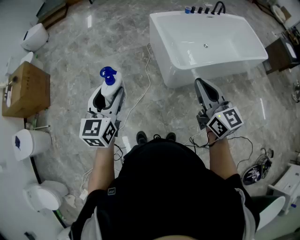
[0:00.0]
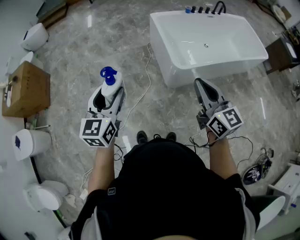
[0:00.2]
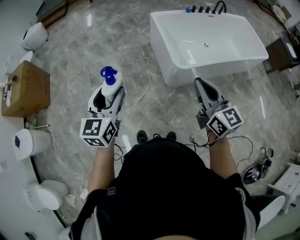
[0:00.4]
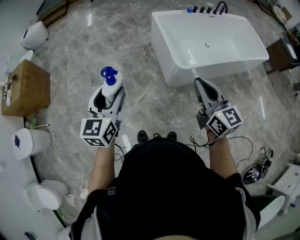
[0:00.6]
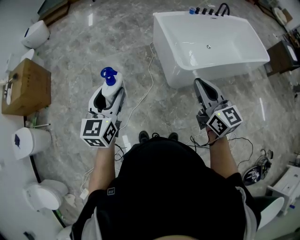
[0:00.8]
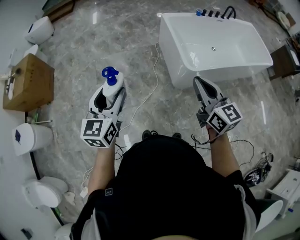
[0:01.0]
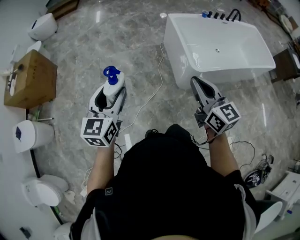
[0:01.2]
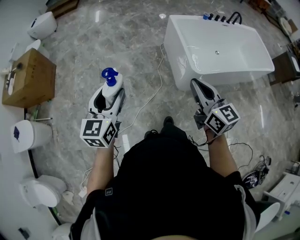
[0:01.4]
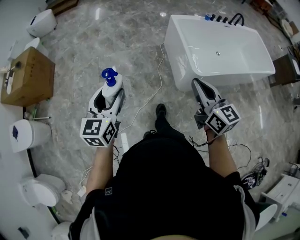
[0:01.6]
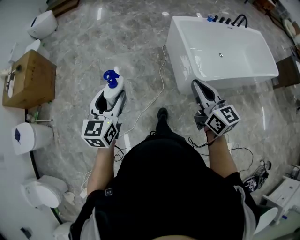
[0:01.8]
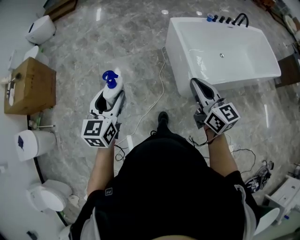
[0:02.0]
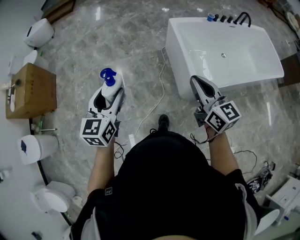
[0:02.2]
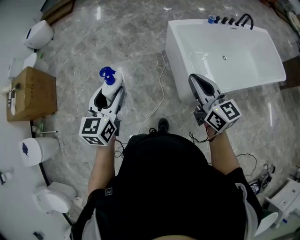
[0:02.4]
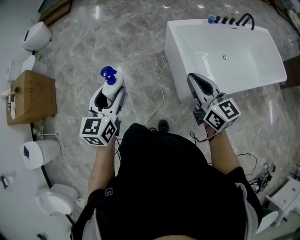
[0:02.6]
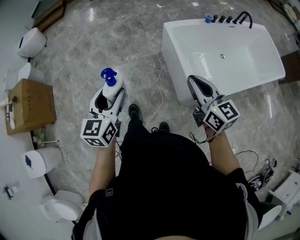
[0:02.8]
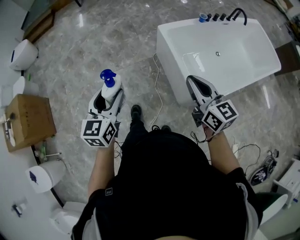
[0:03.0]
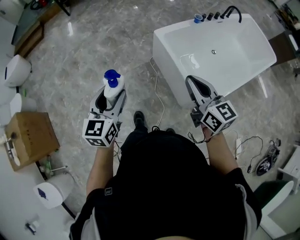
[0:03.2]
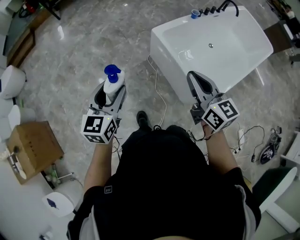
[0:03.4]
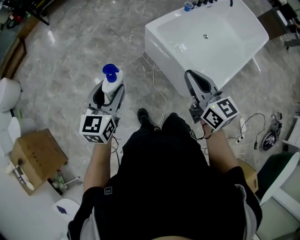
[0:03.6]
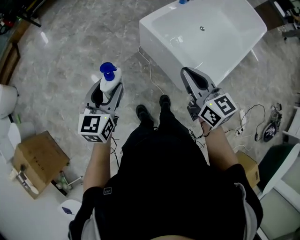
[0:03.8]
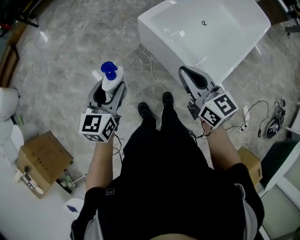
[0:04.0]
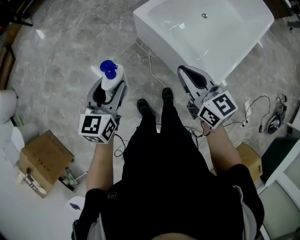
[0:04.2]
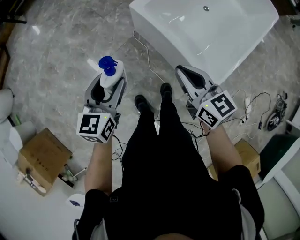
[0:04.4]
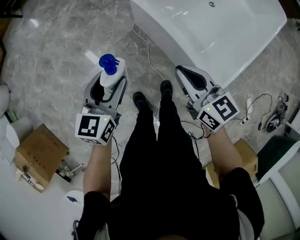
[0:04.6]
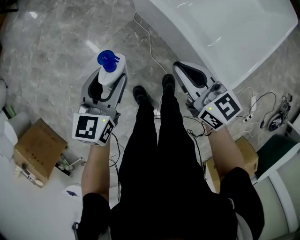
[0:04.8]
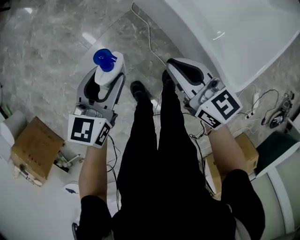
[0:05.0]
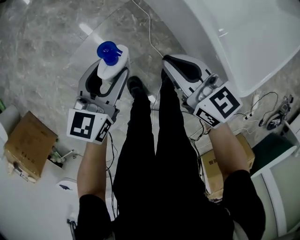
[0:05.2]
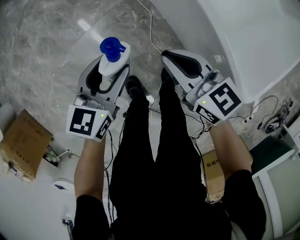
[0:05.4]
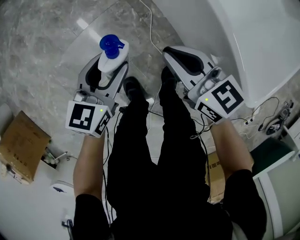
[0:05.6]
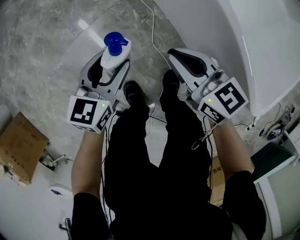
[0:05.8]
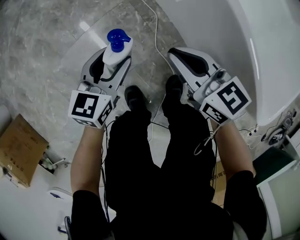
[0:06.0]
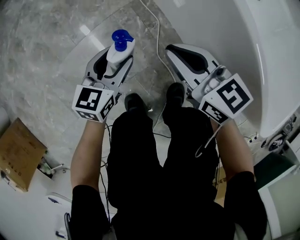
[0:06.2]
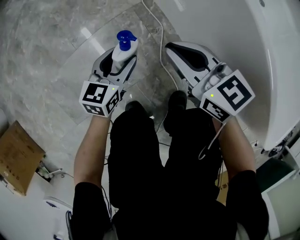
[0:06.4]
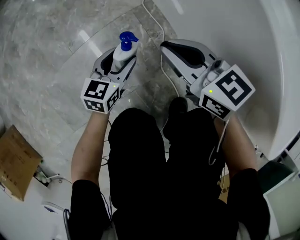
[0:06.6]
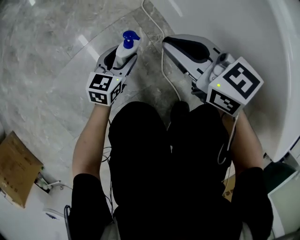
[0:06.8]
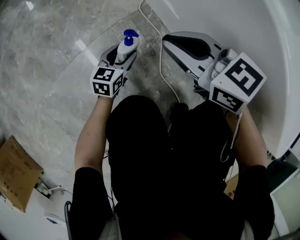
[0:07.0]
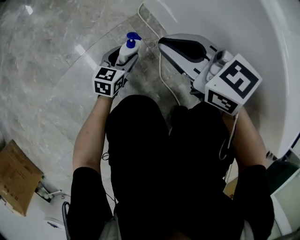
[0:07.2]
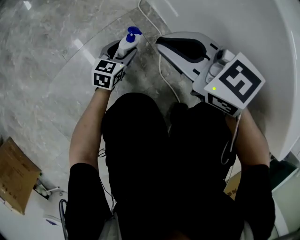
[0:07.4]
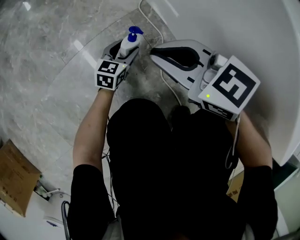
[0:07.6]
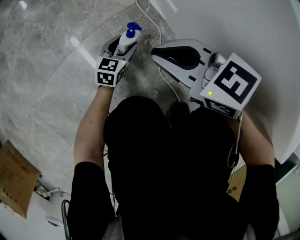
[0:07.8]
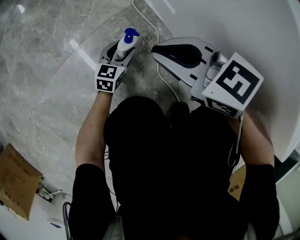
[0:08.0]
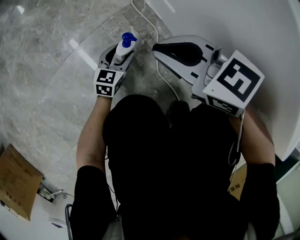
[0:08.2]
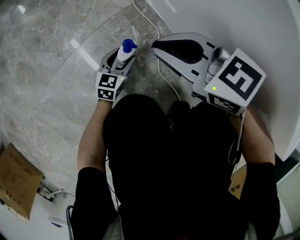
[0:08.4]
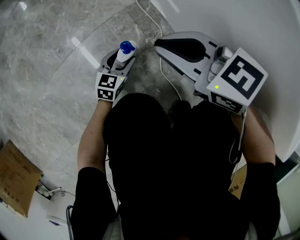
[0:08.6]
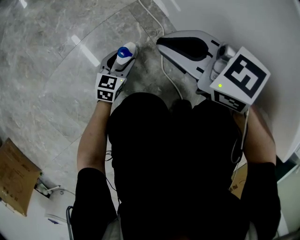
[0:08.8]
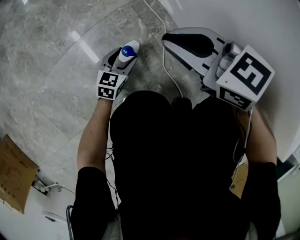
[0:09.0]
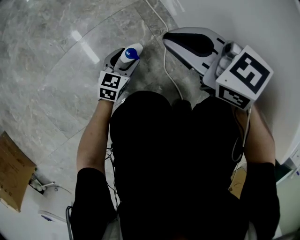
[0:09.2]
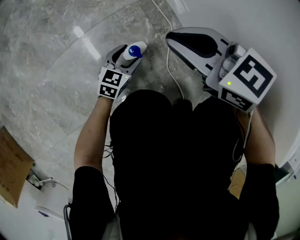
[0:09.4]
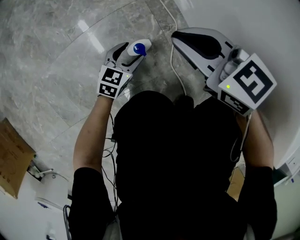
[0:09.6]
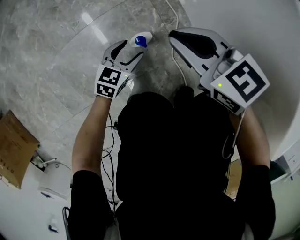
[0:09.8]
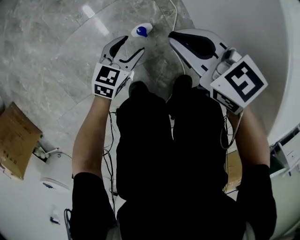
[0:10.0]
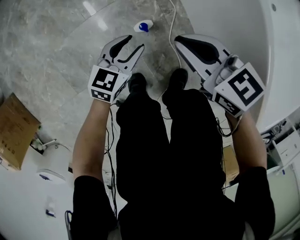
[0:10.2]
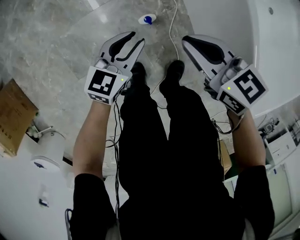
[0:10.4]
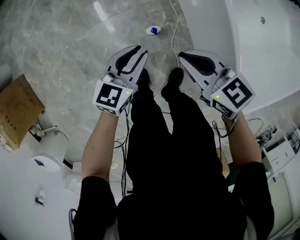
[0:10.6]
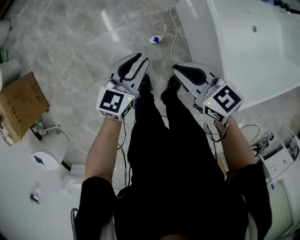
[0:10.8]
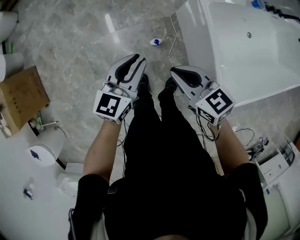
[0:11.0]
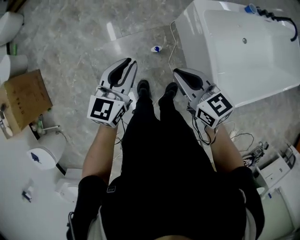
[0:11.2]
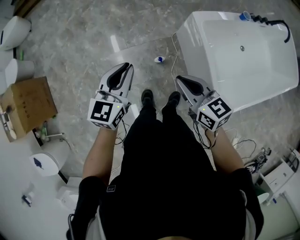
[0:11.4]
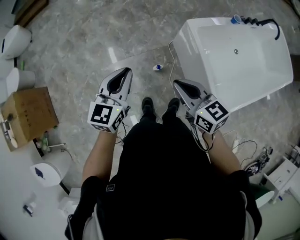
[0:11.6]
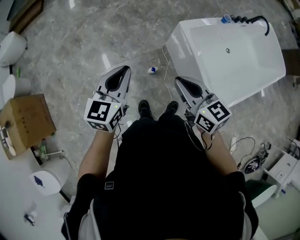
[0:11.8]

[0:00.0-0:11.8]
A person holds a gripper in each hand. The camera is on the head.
0.0 to 1.4 s: The two grippers go roughly 15 cm to the left.
1.4 to 3.0 s: Both grippers travel together forward, roughly 40 cm.
3.0 to 4.4 s: Both grippers travel together forward and downward, roughly 25 cm. The left gripper swivels approximately 30 degrees.
4.4 to 6.0 s: Both grippers move downward, roughly 50 cm.
6.0 to 7.4 s: The right gripper shifts some 15 cm downward and forward, while the left gripper is displaced downward by about 30 cm.
7.4 to 8.8 s: The left gripper heads backward, covering about 5 cm.
8.8 to 10.4 s: The right gripper shifts approximately 20 cm upward, while the left gripper goes roughly 40 cm upward, and closes its fingers.
10.4 to 11.8 s: The two grippers go about 50 cm upward. The left gripper rotates about 20 degrees, and closes up; the right gripper swivels approximately 20 degrees.

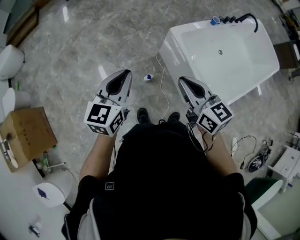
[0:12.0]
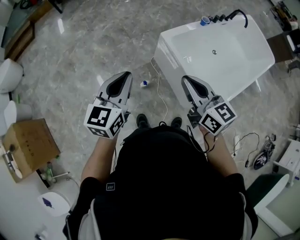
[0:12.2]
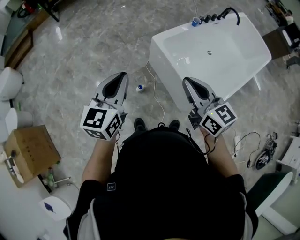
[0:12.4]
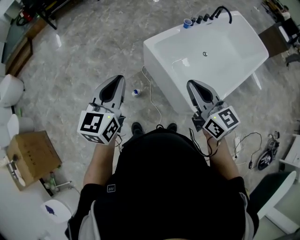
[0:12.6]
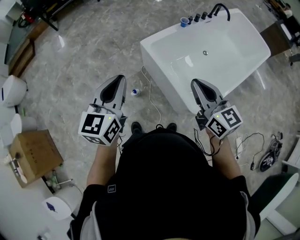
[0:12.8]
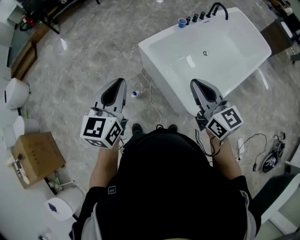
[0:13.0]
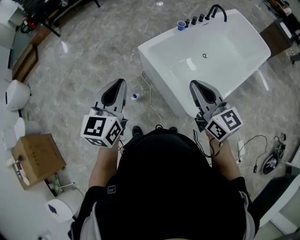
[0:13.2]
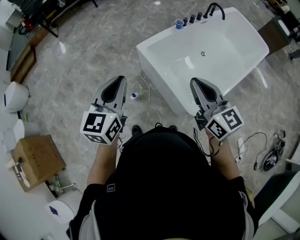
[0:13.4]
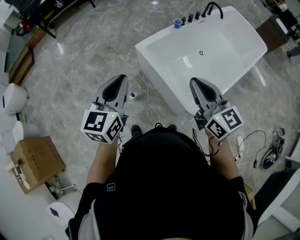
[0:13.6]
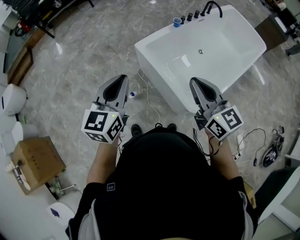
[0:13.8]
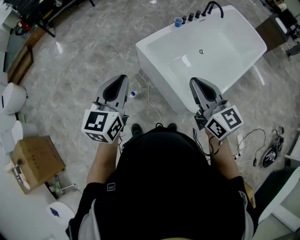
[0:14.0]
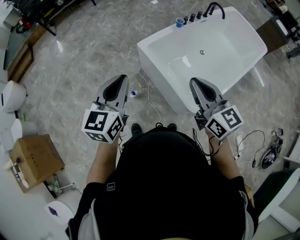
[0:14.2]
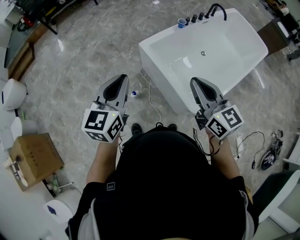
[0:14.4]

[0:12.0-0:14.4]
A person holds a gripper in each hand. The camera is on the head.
12.0 to 13.2 s: Both grippers travel together to the right, some 25 cm.
13.2 to 14.4 s: The grippers move only a little.

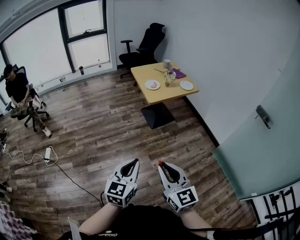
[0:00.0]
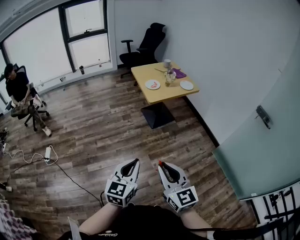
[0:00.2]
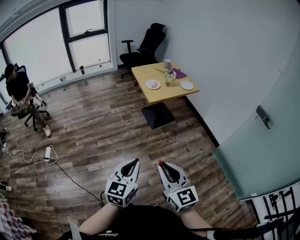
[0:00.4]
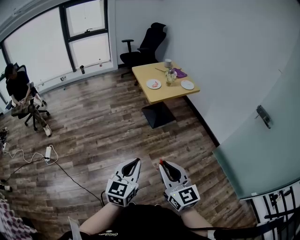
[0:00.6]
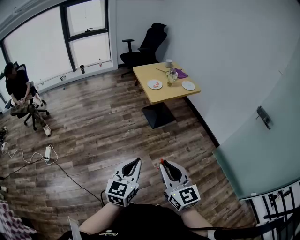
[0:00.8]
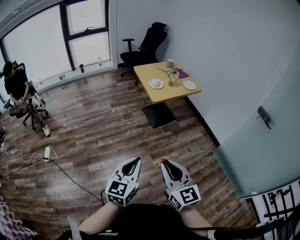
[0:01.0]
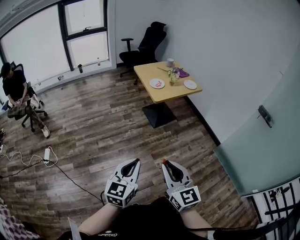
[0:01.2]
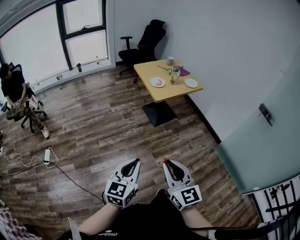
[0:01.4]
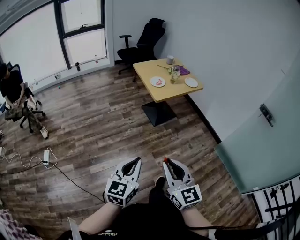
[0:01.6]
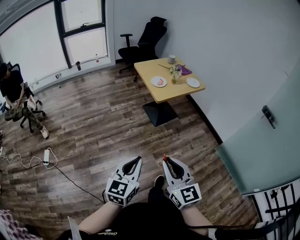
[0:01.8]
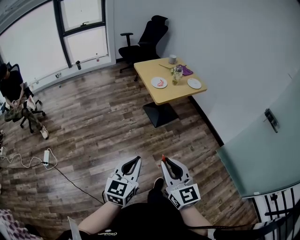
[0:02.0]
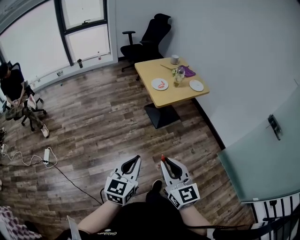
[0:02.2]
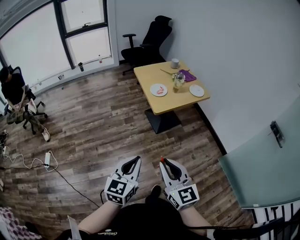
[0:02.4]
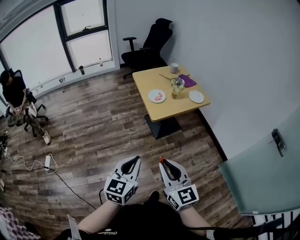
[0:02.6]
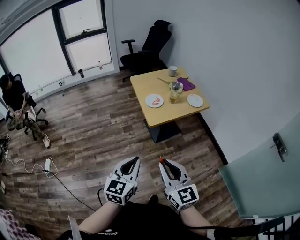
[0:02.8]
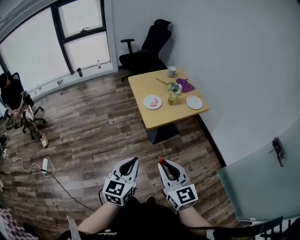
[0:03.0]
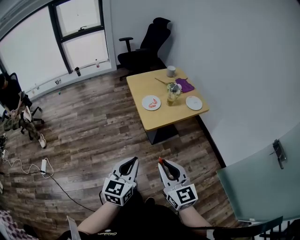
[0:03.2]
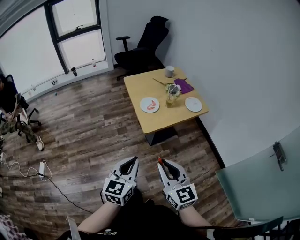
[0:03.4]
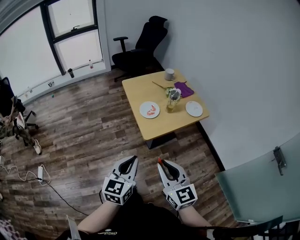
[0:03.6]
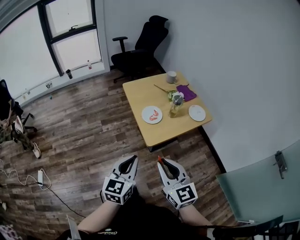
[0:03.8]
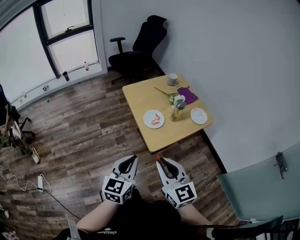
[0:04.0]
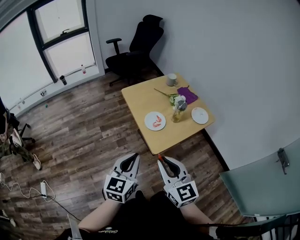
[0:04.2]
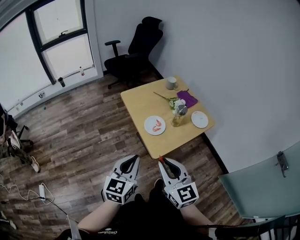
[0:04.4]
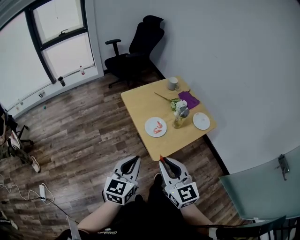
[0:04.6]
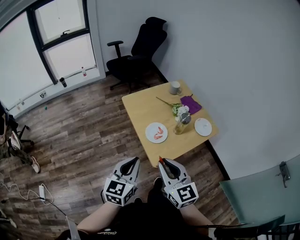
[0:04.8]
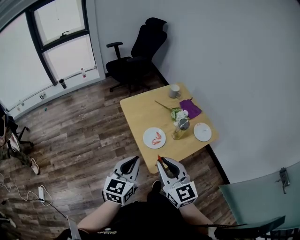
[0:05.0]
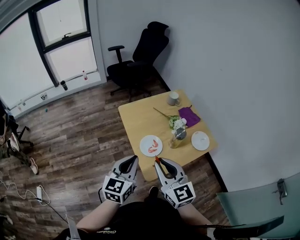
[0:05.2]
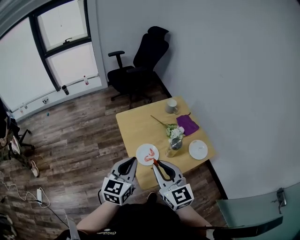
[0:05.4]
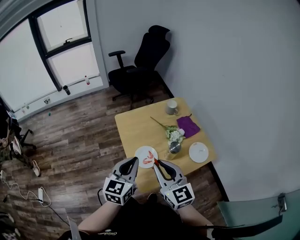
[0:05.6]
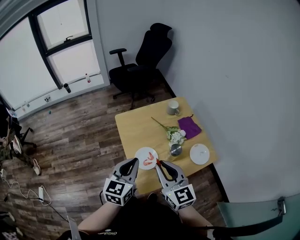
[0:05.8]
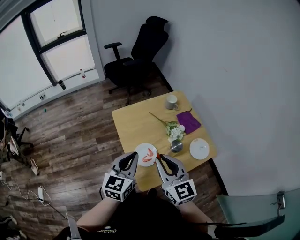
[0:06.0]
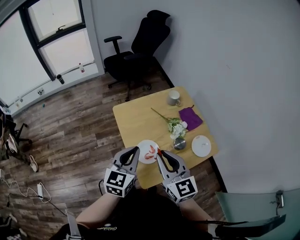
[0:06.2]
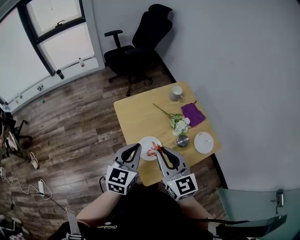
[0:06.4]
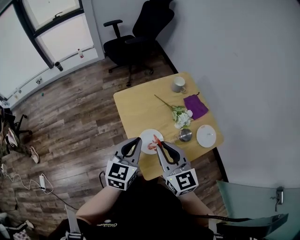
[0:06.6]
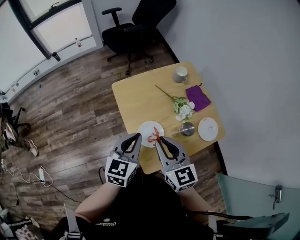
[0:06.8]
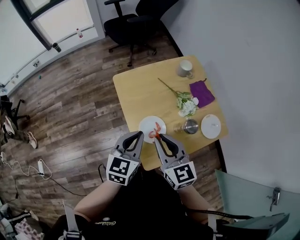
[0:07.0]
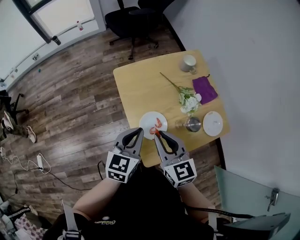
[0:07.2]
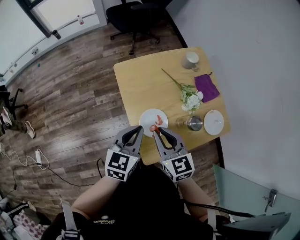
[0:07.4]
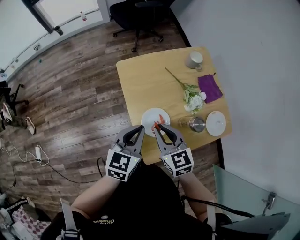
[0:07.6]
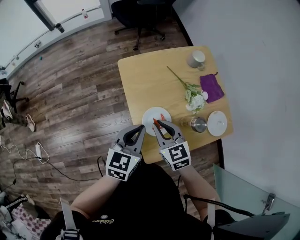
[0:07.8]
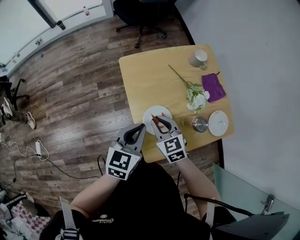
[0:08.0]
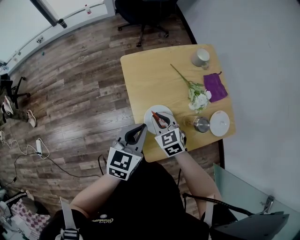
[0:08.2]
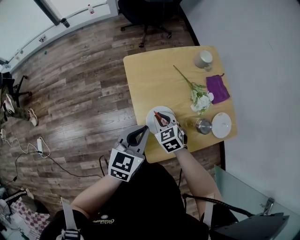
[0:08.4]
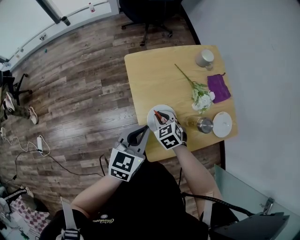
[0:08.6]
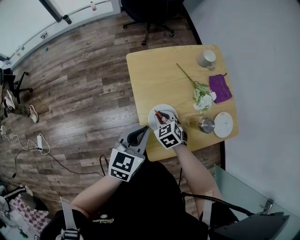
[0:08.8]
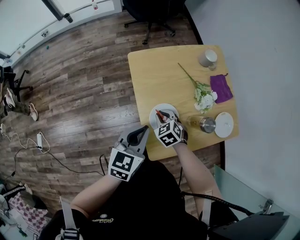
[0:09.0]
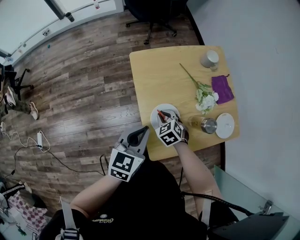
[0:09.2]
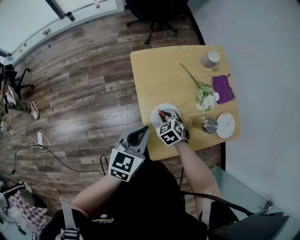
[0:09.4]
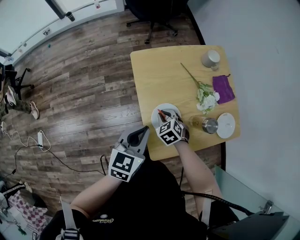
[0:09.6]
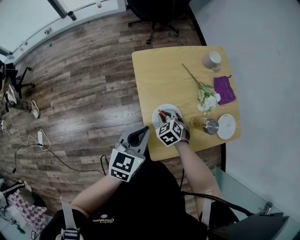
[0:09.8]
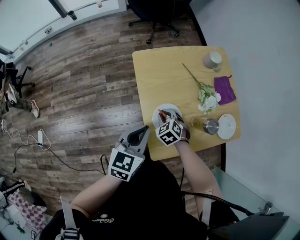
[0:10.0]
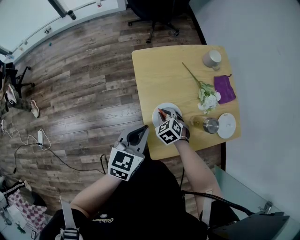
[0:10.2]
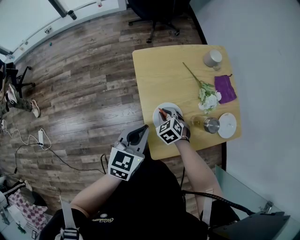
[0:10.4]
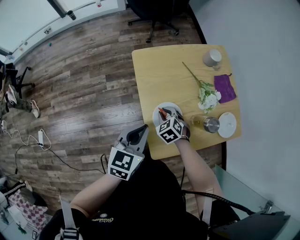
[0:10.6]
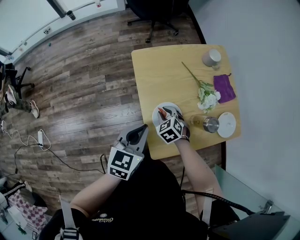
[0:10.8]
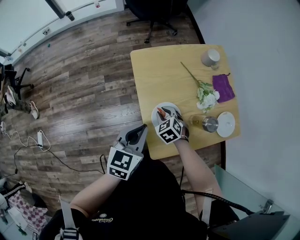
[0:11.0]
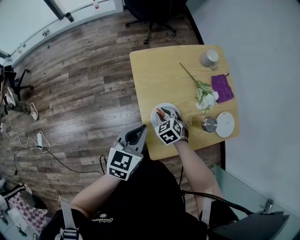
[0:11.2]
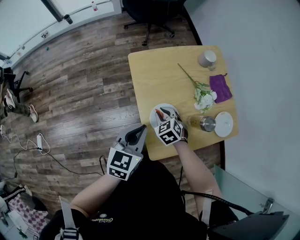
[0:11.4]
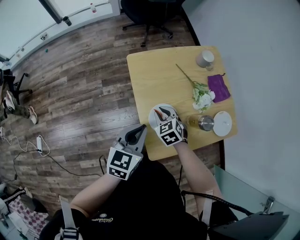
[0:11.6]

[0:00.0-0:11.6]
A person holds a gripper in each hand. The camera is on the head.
0.0 to 1.4 s: The two grippers go approximately 10 cm to the left.
1.4 to 2.8 s: The grippers both shift forward and to the right by about 30 cm.
2.8 to 4.4 s: The two grippers go about 30 cm forward.
4.4 to 5.8 s: Both grippers travel together forward and to the right, roughly 25 cm.
5.8 to 7.2 s: The right gripper heads downward, forward and to the left, covering some 15 cm; the left gripper shifts about 10 cm downward and forward.
7.2 to 8.8 s: The right gripper is displaced downward by some 20 cm, and tips its fingers downward by some 30 degrees.
8.8 to 10.2 s: There are only small adjustments of the grippers.
10.2 to 11.6 s: The right gripper moves approximately 5 cm.
